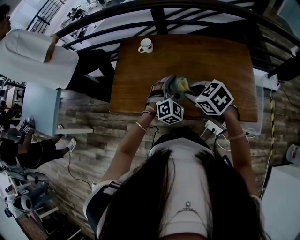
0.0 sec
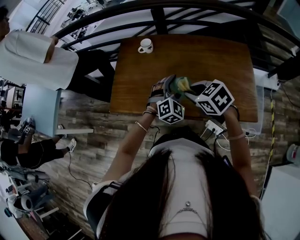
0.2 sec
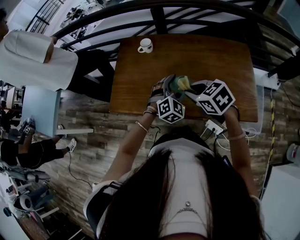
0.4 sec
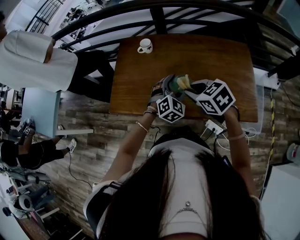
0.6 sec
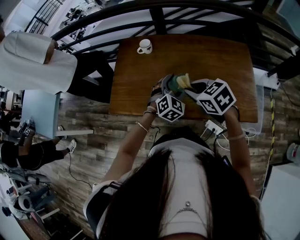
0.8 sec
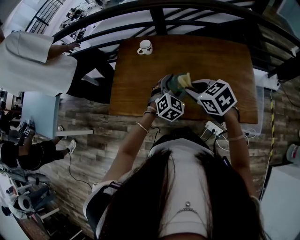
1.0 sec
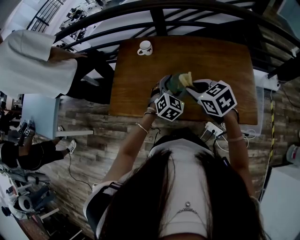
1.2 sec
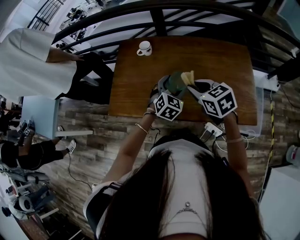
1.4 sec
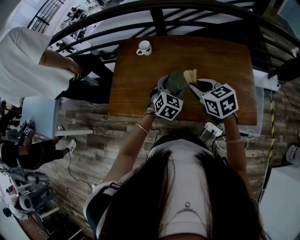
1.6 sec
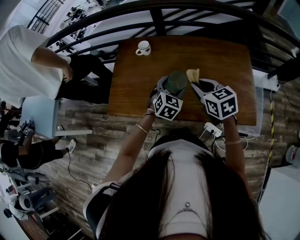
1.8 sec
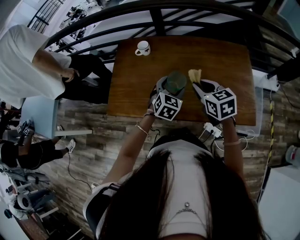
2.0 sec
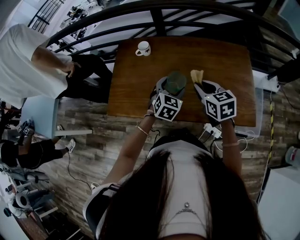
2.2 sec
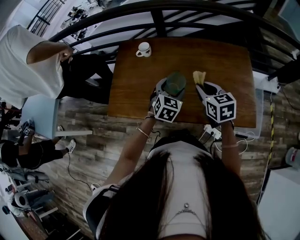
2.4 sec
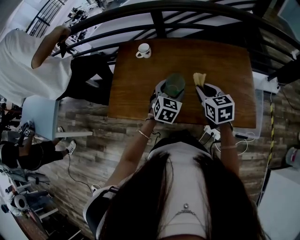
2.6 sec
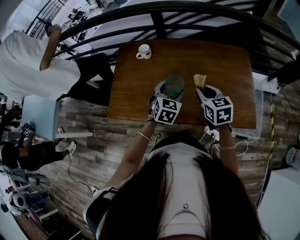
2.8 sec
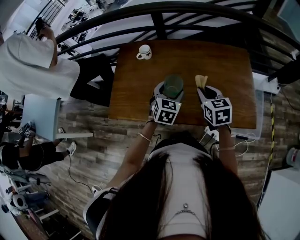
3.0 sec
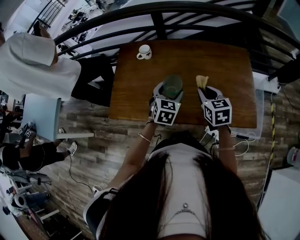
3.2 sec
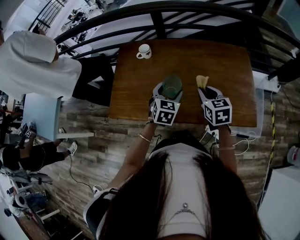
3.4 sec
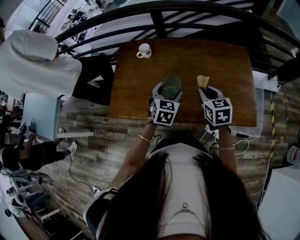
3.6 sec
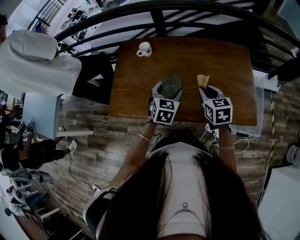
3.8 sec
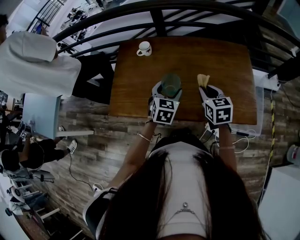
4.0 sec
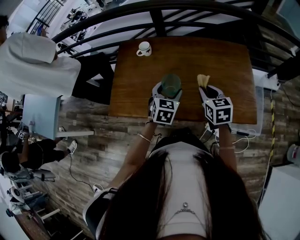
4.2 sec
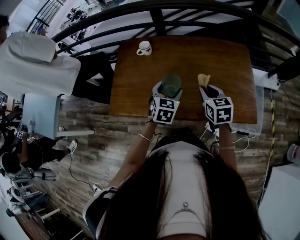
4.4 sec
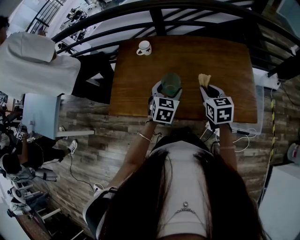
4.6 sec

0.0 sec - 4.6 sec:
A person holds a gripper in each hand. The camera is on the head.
0.0 sec - 1.6 sec: The right gripper heads to the right, covering approximately 5 cm, and swivels about 20 degrees, while the left gripper swivels about 30 degrees.
1.6 sec - 3.0 sec: The right gripper moves to the right, roughly 5 cm.
3.0 sec - 4.6 sec: The grippers make only small movements.

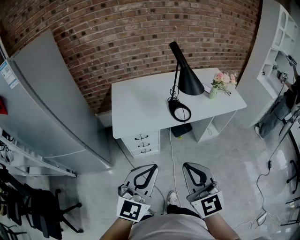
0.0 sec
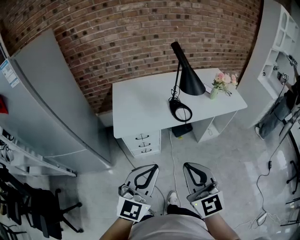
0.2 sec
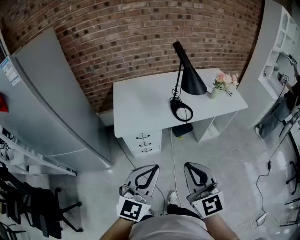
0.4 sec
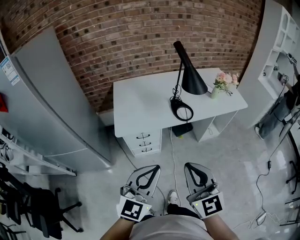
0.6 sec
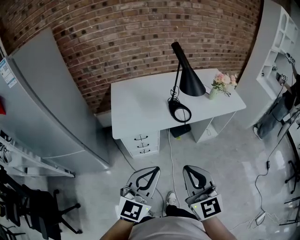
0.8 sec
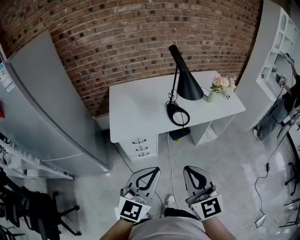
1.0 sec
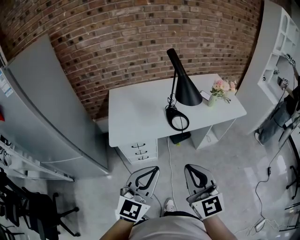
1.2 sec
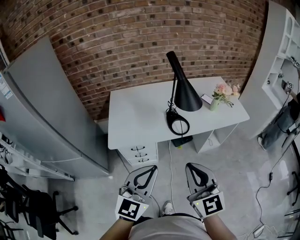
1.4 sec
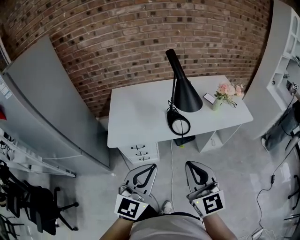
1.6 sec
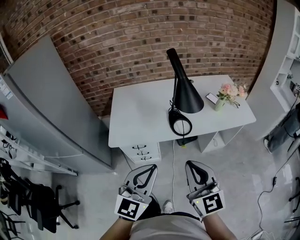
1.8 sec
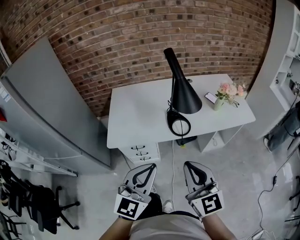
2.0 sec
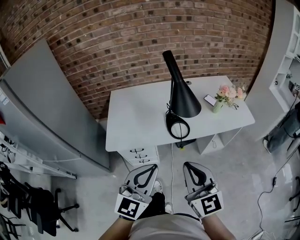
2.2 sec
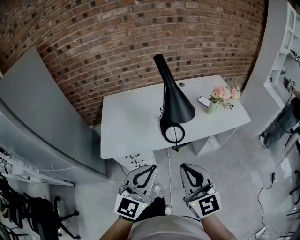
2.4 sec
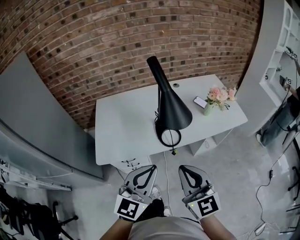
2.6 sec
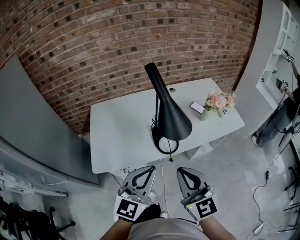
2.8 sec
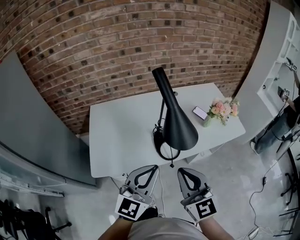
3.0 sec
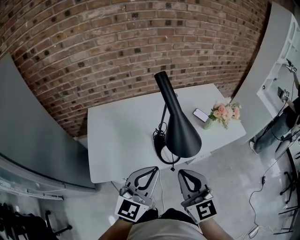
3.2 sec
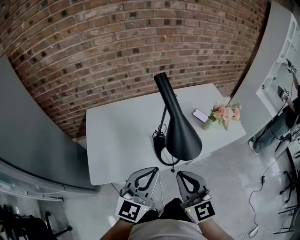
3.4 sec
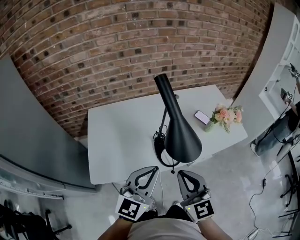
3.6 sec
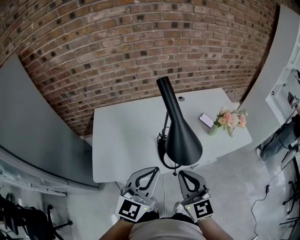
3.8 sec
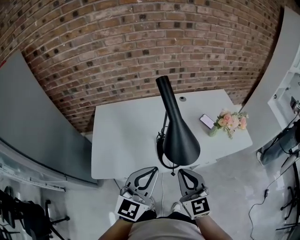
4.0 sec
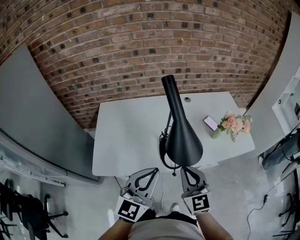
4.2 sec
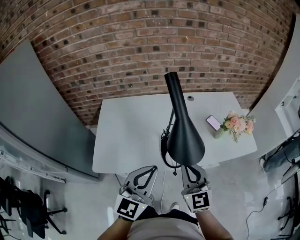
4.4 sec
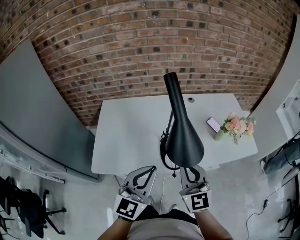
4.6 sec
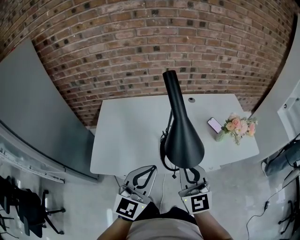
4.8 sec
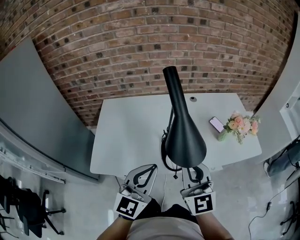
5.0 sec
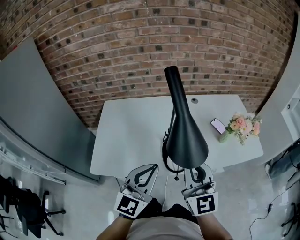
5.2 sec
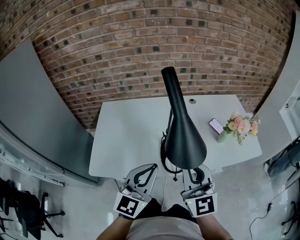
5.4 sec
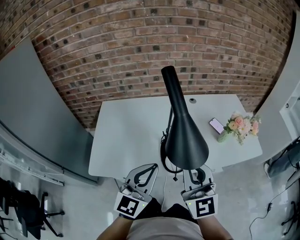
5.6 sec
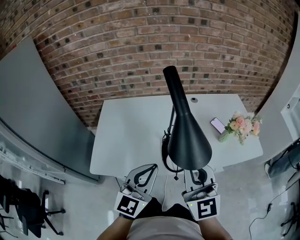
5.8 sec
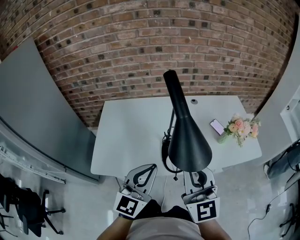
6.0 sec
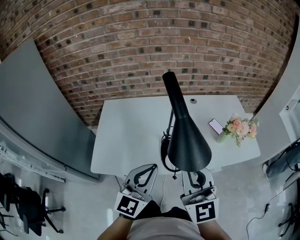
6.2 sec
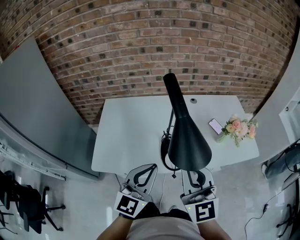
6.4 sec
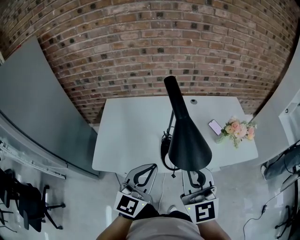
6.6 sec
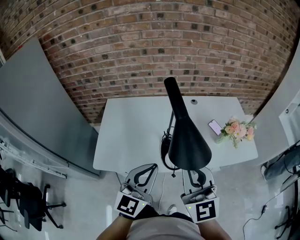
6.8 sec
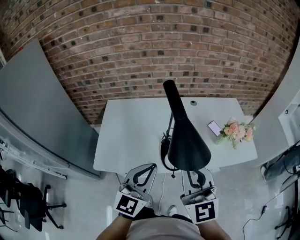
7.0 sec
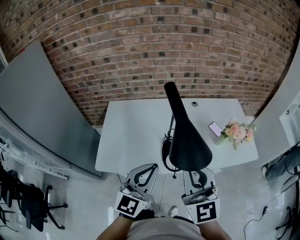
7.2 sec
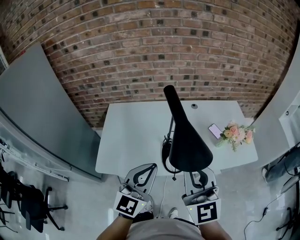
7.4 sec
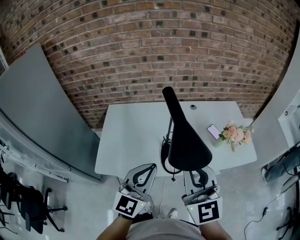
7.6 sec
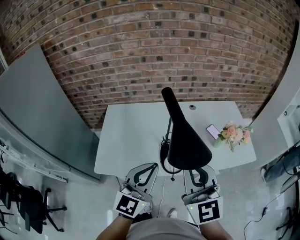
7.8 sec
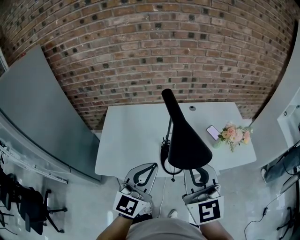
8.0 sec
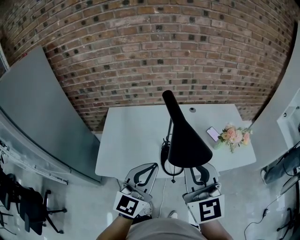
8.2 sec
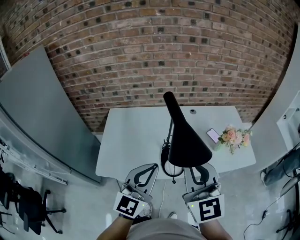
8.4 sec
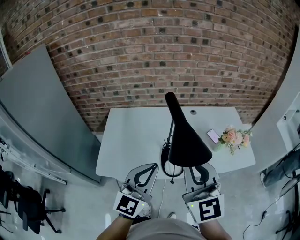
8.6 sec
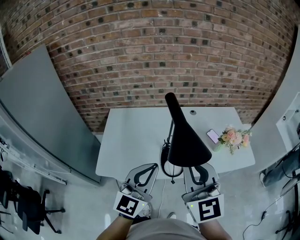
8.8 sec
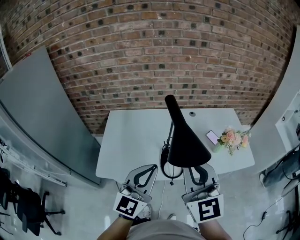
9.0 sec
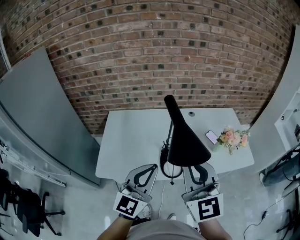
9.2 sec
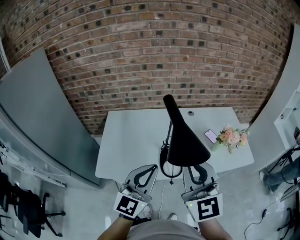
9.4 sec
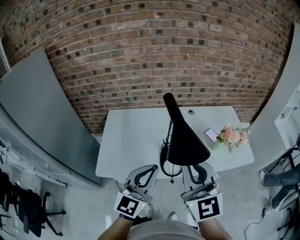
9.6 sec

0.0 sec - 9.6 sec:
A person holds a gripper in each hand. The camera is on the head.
0.0 sec - 1.6 sec: The two grippers go about 10 cm forward and to the right.
1.6 sec - 3.2 sec: The grippers both shift forward by about 20 cm.
3.2 sec - 4.8 sec: The right gripper heads forward, covering about 10 cm.
4.8 sec - 6.4 sec: The right gripper heads upward, covering about 5 cm.
6.4 sec - 8.0 sec: Both grippers travel together upward, roughly 5 cm.
8.0 sec - 9.6 sec: The grippers make only small movements.

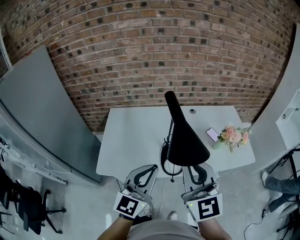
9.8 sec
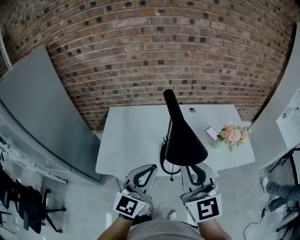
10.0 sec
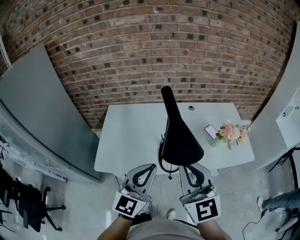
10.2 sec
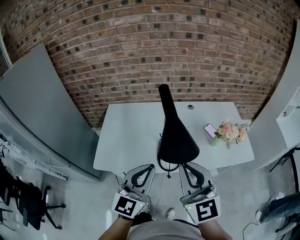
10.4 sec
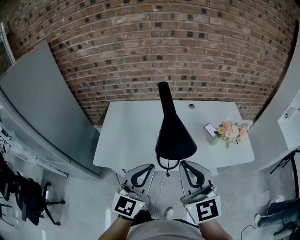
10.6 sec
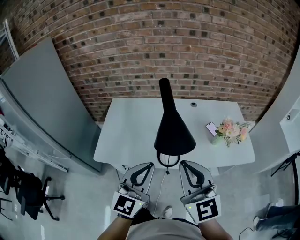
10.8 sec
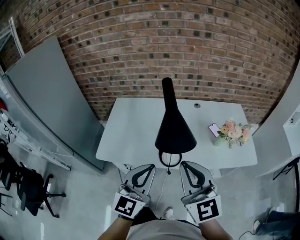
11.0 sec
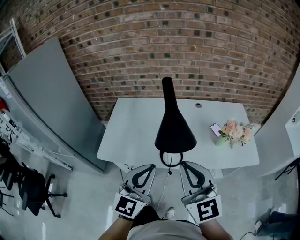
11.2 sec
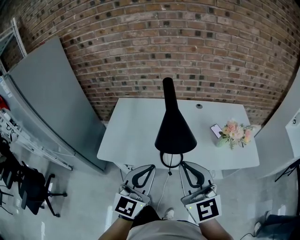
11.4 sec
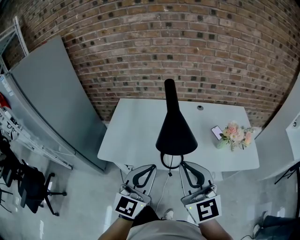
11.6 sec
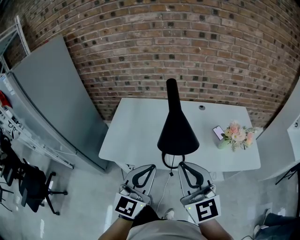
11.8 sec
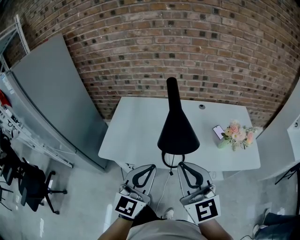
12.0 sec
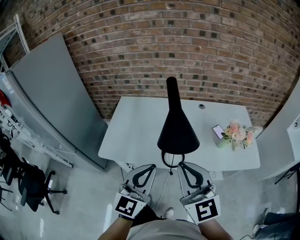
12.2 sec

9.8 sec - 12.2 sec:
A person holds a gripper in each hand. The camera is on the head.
9.8 sec - 11.0 sec: The left gripper changes place by roughly 5 cm, while the right gripper shifts by roughly 10 cm.
11.0 sec - 12.2 sec: The two grippers keep their place.

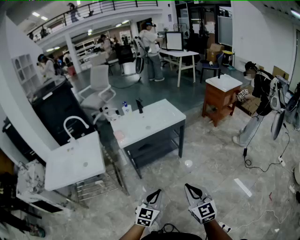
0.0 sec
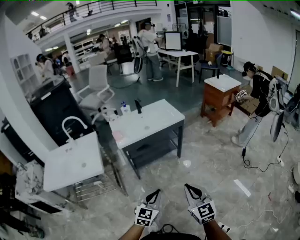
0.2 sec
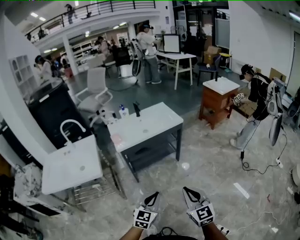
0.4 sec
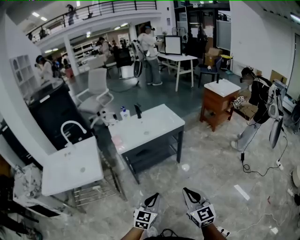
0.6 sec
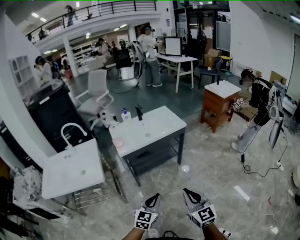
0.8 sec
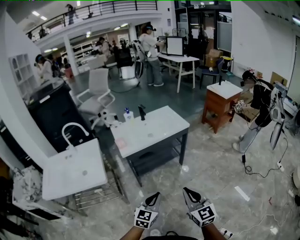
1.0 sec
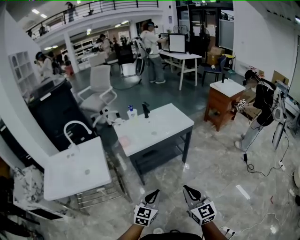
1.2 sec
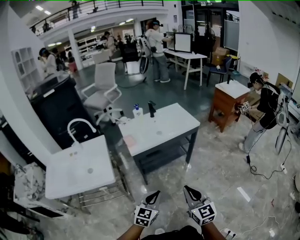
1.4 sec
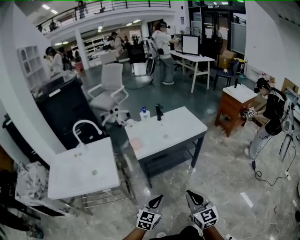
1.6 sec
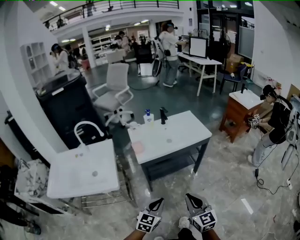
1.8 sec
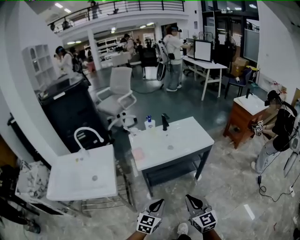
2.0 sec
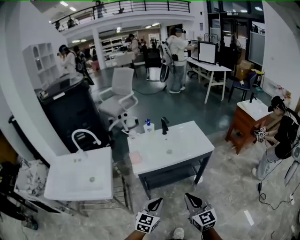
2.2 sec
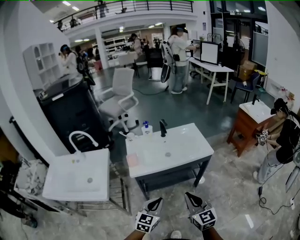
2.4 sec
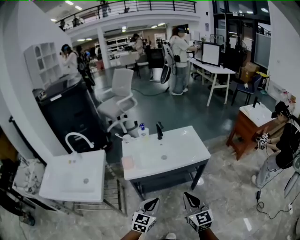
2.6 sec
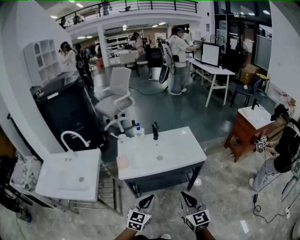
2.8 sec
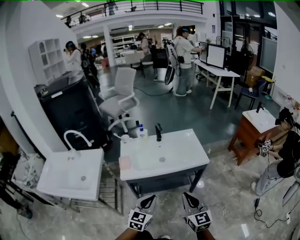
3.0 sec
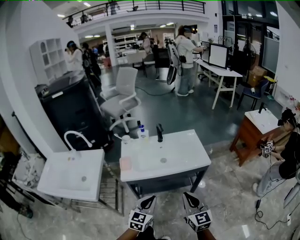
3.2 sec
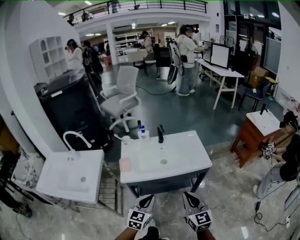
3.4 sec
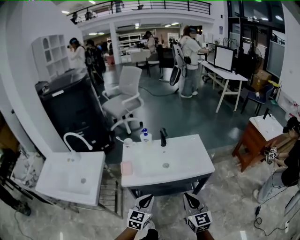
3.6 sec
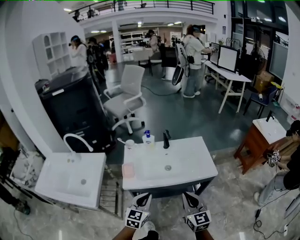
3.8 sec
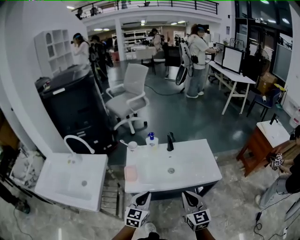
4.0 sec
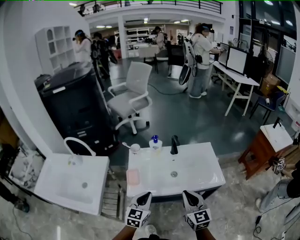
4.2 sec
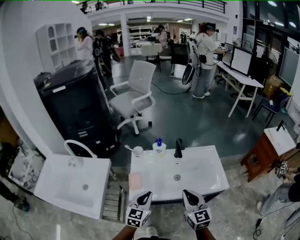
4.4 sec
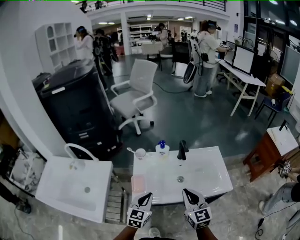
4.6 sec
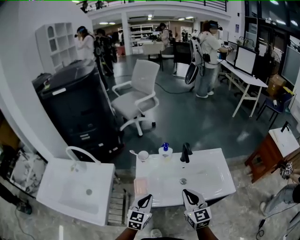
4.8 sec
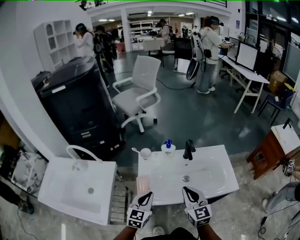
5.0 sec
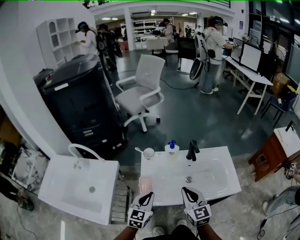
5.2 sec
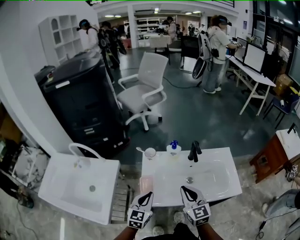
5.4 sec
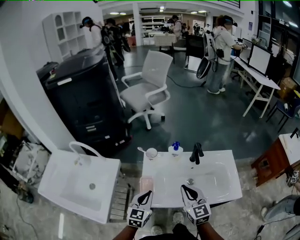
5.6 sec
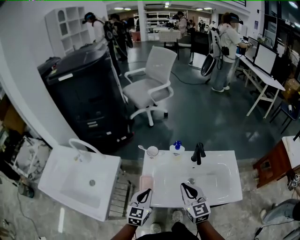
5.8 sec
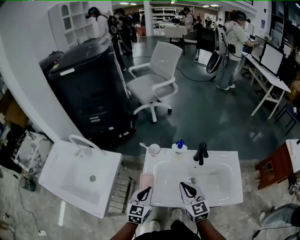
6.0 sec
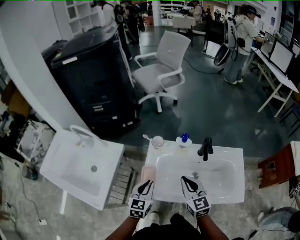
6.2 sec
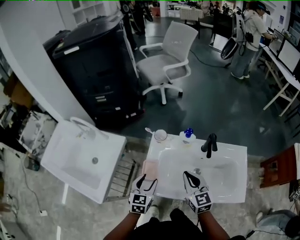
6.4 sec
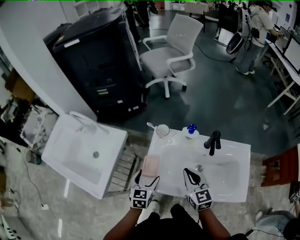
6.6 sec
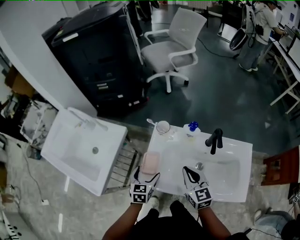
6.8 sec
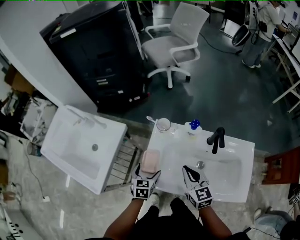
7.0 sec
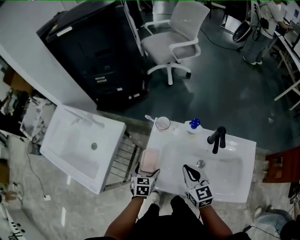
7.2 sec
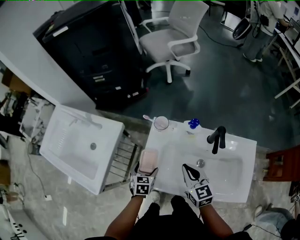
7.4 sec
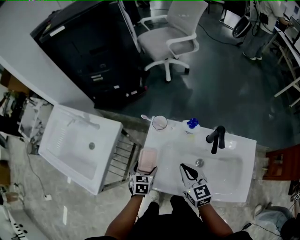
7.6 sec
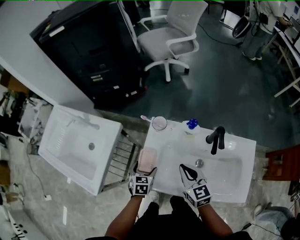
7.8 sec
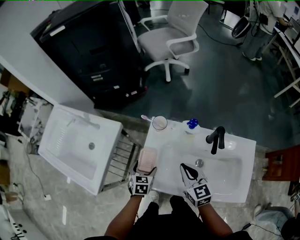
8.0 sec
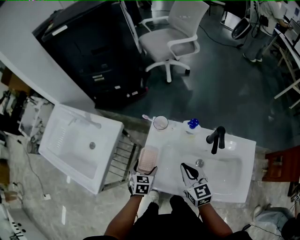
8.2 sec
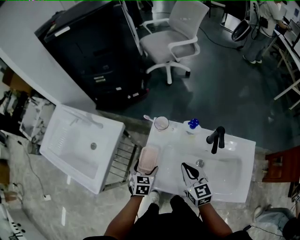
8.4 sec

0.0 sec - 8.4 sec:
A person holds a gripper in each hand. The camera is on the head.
0.0 sec - 1.4 sec: Both grippers move to the left and forward, about 15 cm.
1.4 sec - 2.8 sec: The two grippers go roughly 25 cm forward and to the right.
2.8 sec - 4.2 sec: The right gripper heads forward, covering about 20 cm. The left gripper moves forward and to the left, some 20 cm.
4.2 sec - 5.6 sec: The right gripper goes approximately 15 cm forward and to the left; the left gripper heads to the left and forward, covering roughly 15 cm.
5.6 sec - 7.0 sec: The left gripper travels downward by some 15 cm, swivels some 30 degrees, and opens its fingers; the right gripper goes roughly 10 cm downward and forward.
7.0 sec - 8.4 sec: The grippers stay close to where they were, moving slightly.
